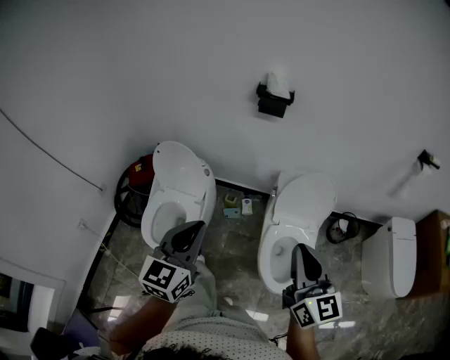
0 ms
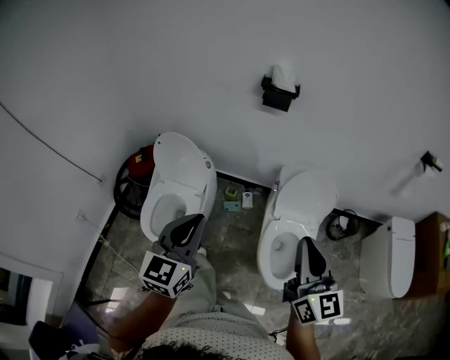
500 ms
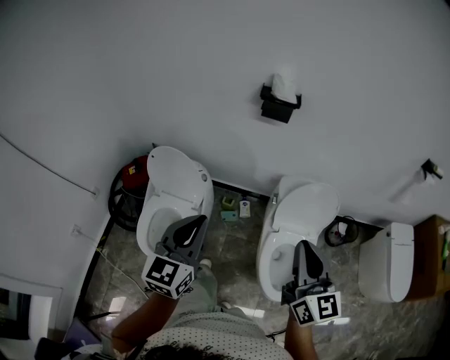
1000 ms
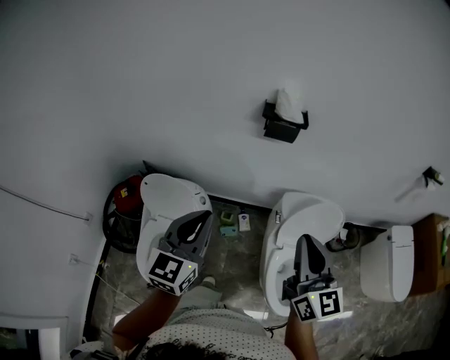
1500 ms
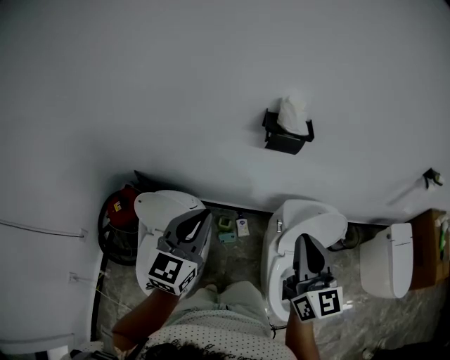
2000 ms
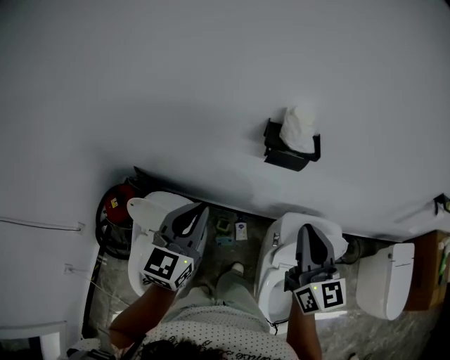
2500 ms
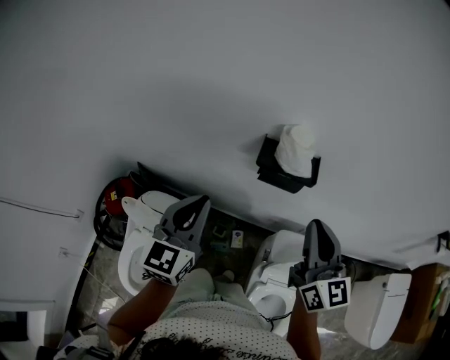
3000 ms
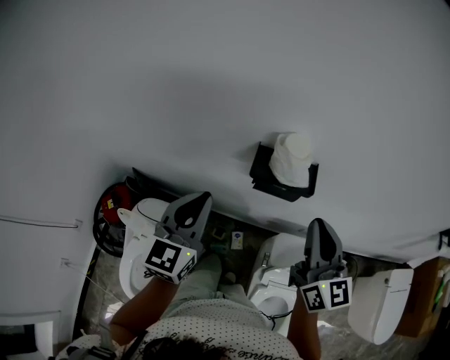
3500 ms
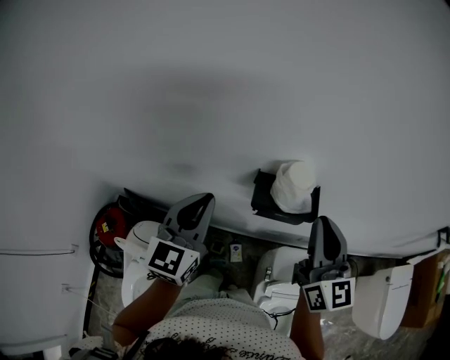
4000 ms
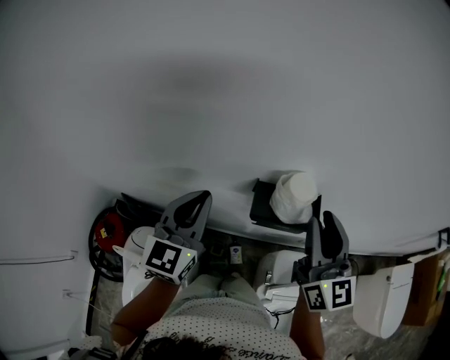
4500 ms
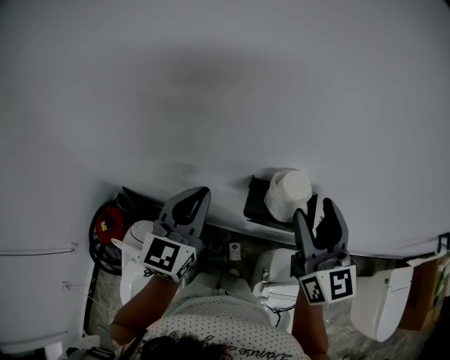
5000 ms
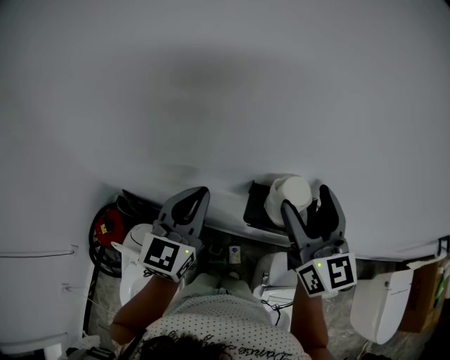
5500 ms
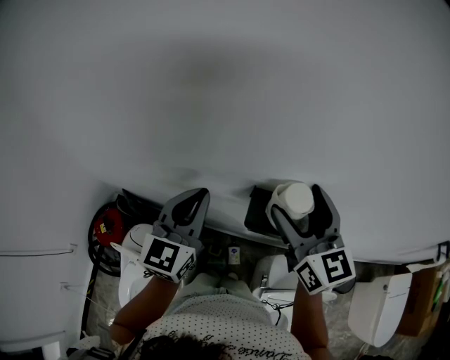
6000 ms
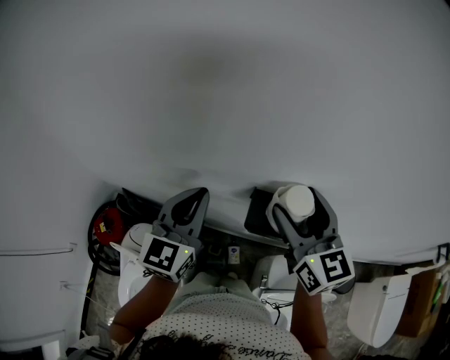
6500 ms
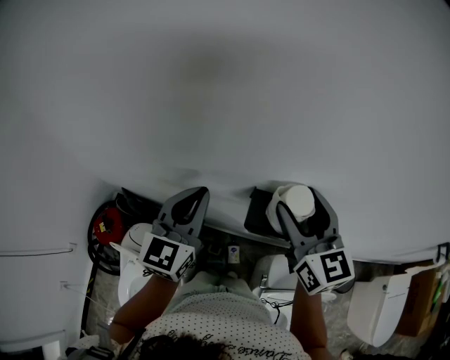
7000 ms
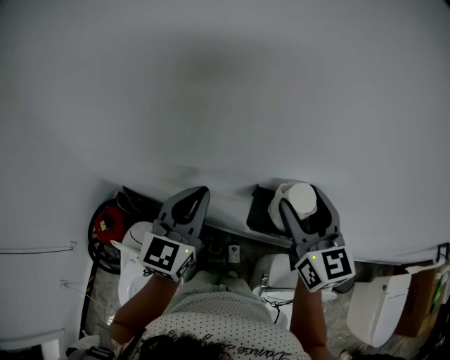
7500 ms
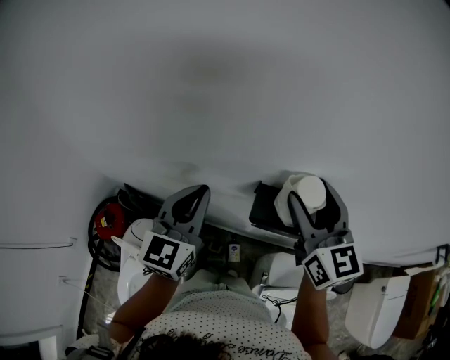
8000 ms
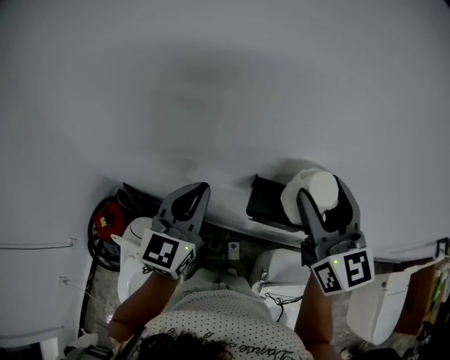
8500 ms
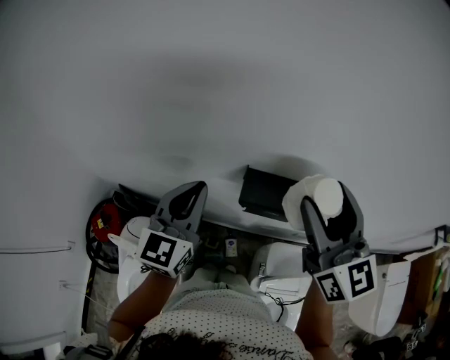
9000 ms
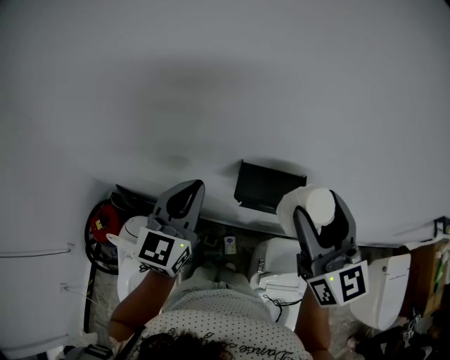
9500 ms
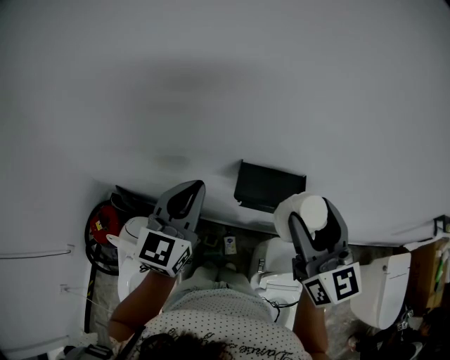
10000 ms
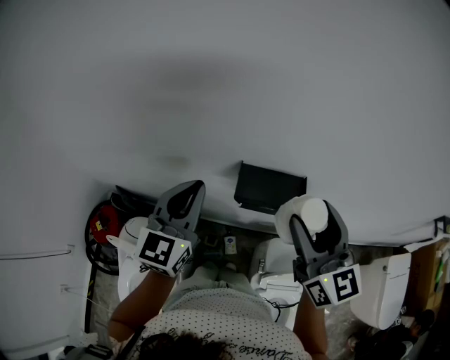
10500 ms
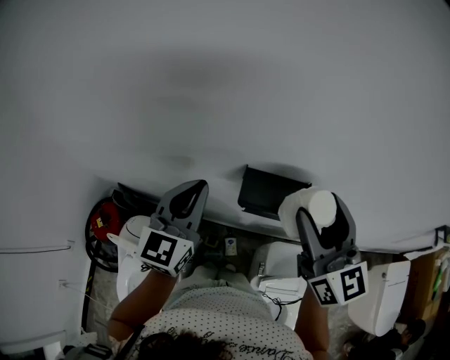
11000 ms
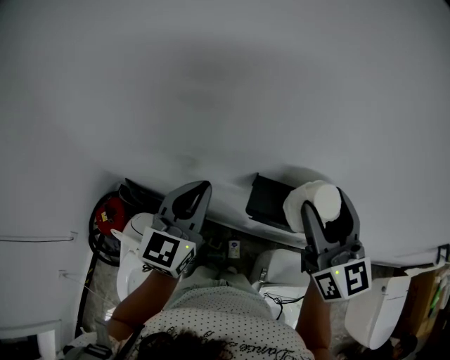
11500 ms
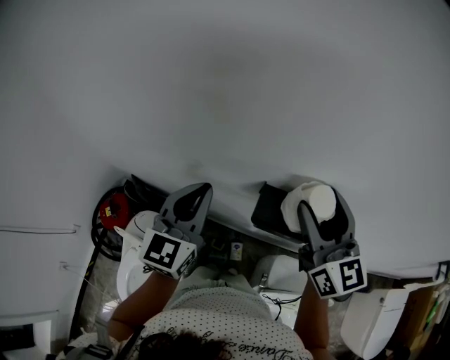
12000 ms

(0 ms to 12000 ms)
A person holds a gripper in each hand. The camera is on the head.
0 ms - 2000 ms: The two grippers go some 30 cm forward.
2000 ms - 4000 ms: The two grippers go approximately 30 cm forward.
4000 ms - 6000 ms: The right gripper travels forward and to the left by roughly 10 cm, and opens its fingers.
6000 ms - 8000 ms: The grippers make only small movements.
8000 ms - 10000 ms: The right gripper travels backward by about 10 cm.
10000 ms - 12000 ms: The right gripper moves forward, some 10 cm.

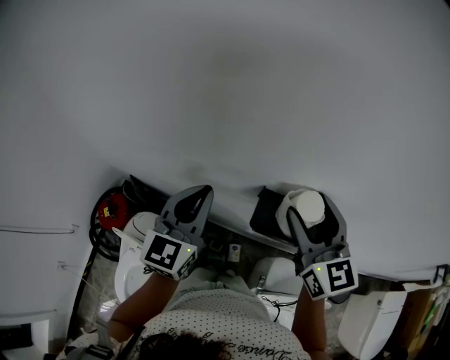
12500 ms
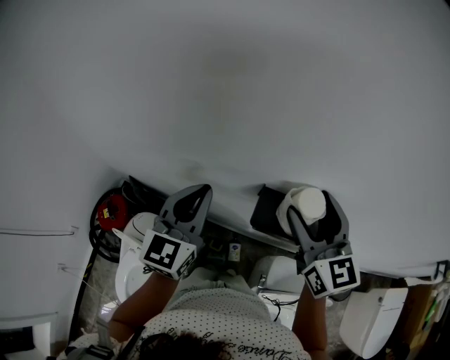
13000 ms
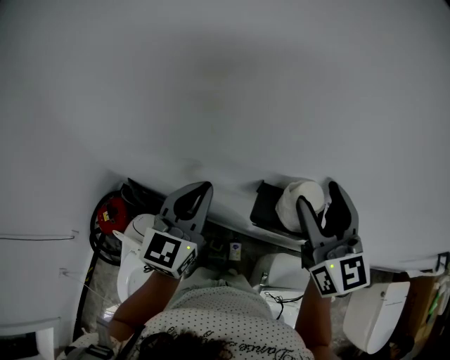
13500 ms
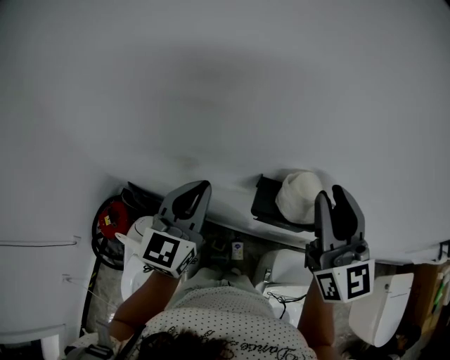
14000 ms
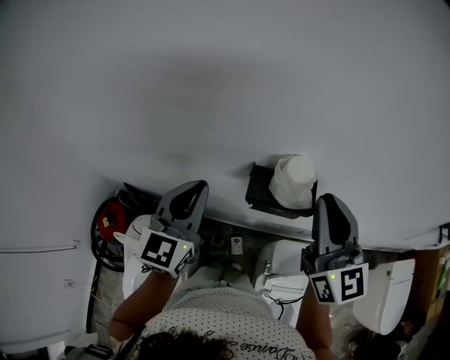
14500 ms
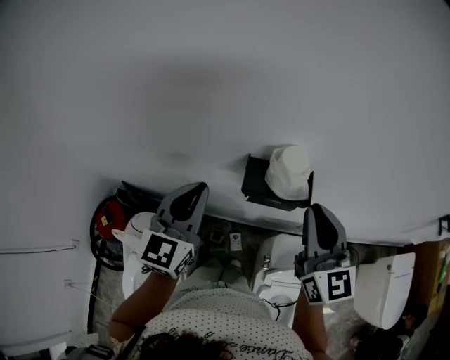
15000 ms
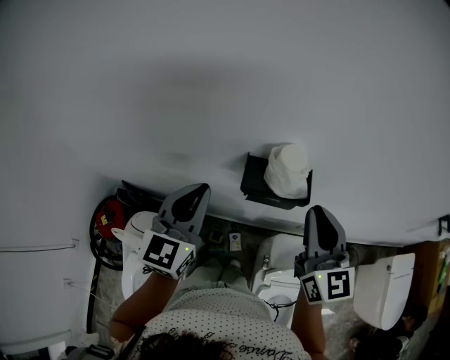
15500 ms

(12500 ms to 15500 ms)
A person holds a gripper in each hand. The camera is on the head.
12500 ms - 14000 ms: The right gripper moves upward, some 5 cm, and closes up.
14000 ms - 15500 ms: The right gripper is displaced downward and backward by about 10 cm; the left gripper ends up approximately 5 cm from where it was.

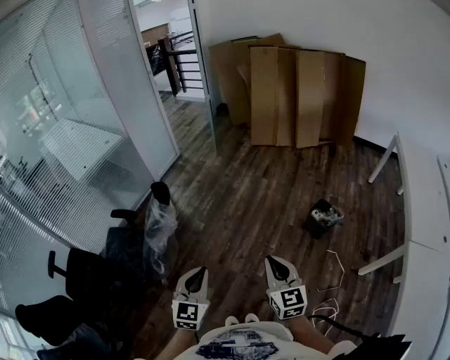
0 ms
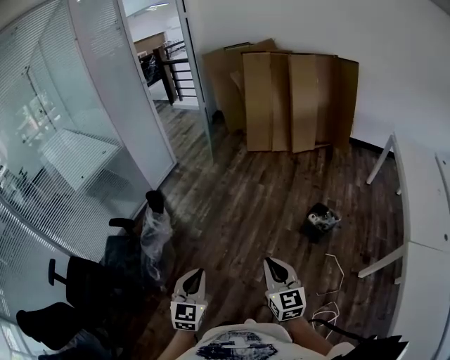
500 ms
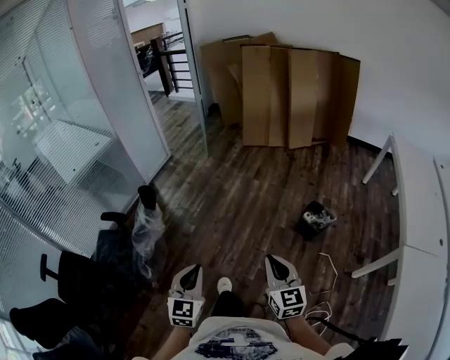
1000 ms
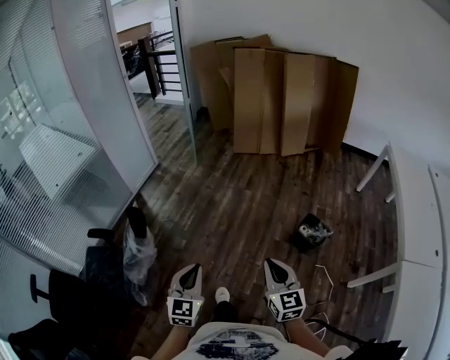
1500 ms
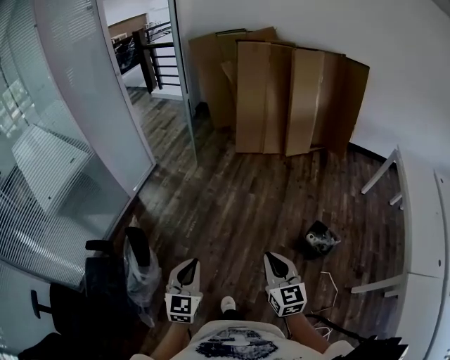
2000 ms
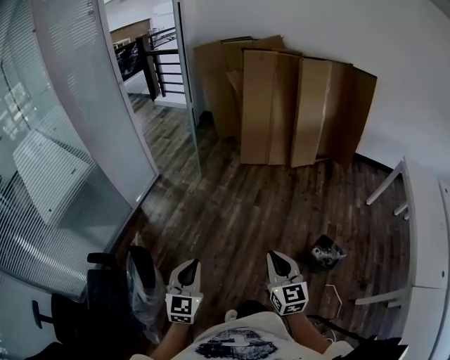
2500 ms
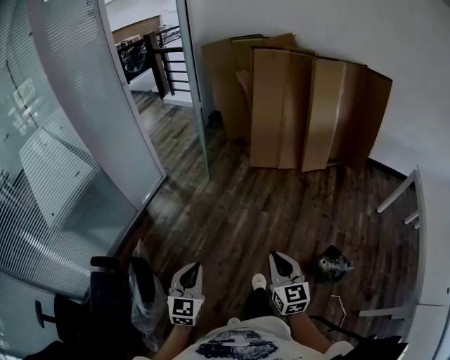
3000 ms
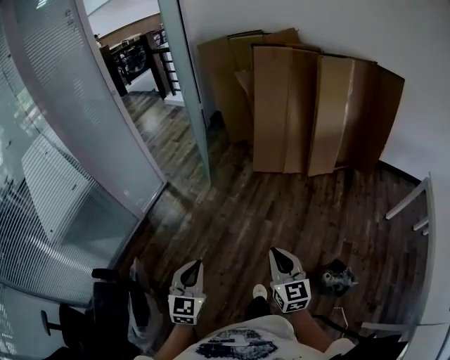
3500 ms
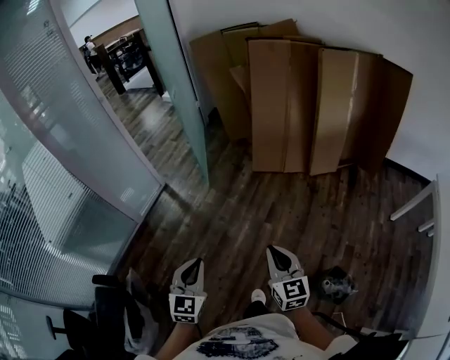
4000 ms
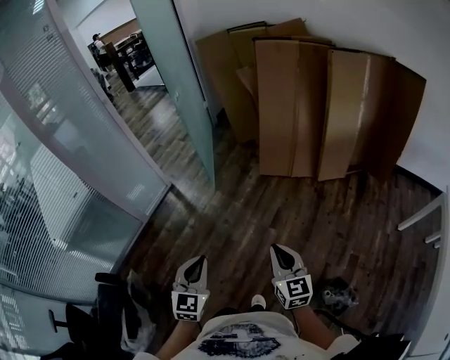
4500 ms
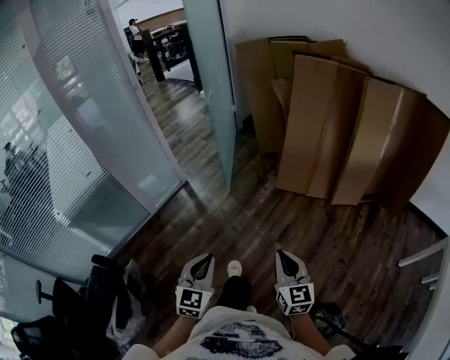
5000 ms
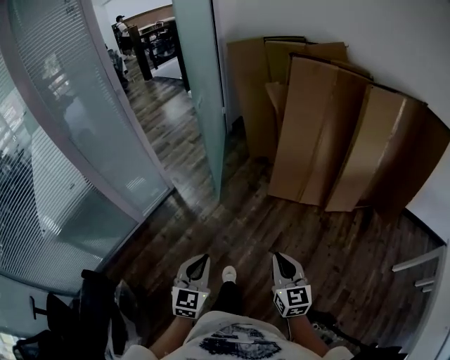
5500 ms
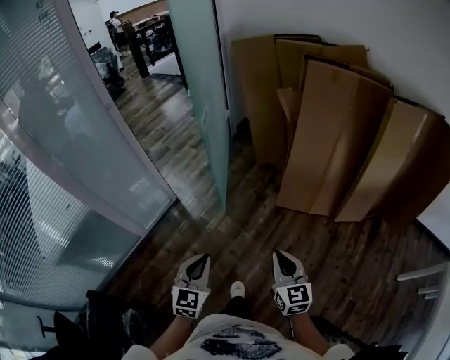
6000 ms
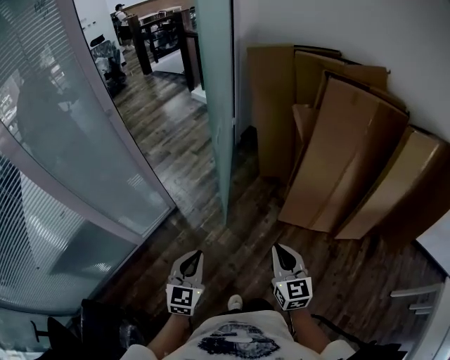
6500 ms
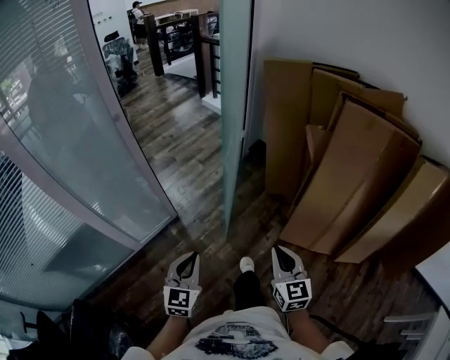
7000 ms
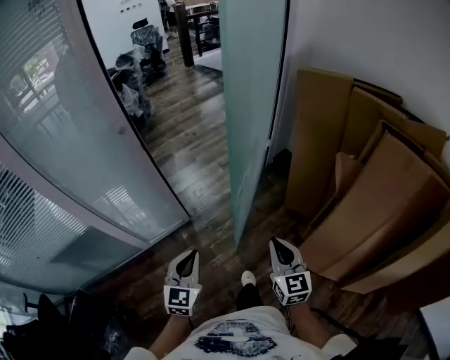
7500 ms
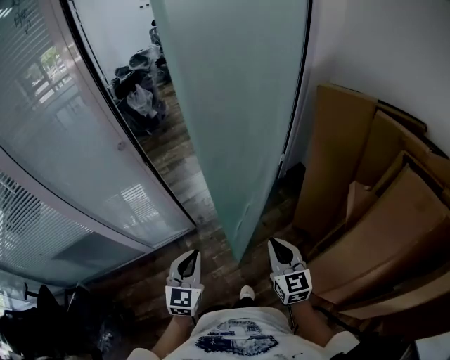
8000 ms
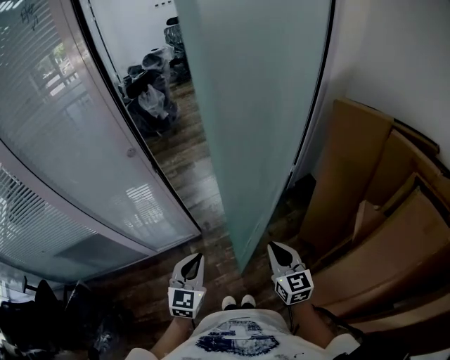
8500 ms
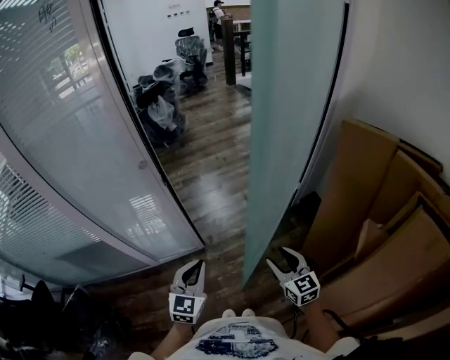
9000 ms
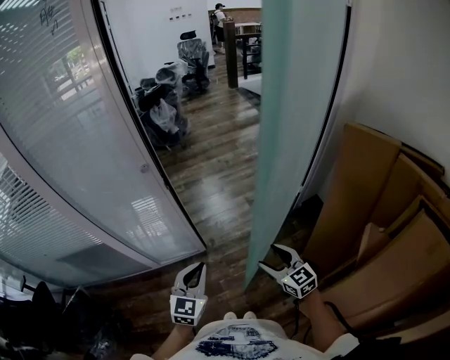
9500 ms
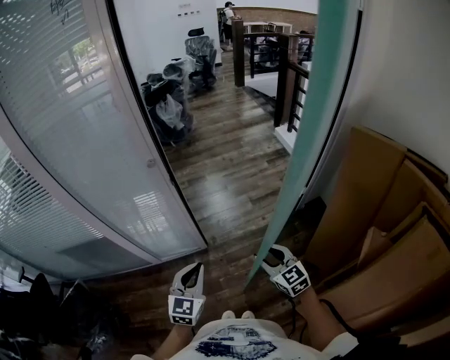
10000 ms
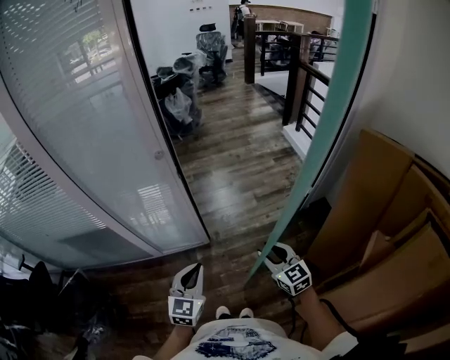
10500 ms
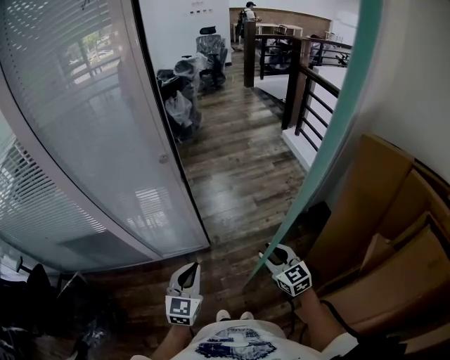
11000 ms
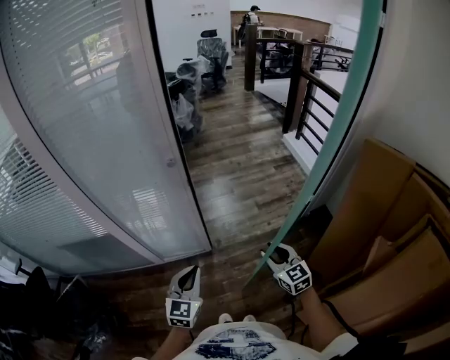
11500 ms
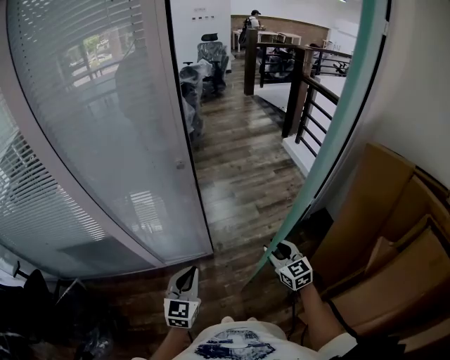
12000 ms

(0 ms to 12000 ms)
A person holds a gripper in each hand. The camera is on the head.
0 ms - 2000 ms: The two grippers go approximately 30 cm forward.
2000 ms - 4000 ms: Both grippers move forward, roughly 35 cm.
4000 ms - 6000 ms: The two grippers go some 35 cm forward.
6000 ms - 8000 ms: The pair of grippers is taken some 50 cm. The left gripper changes its angle by roughly 30 degrees, while the right gripper rotates roughly 30 degrees.
8000 ms - 10000 ms: The left gripper moves forward, roughly 5 cm; the right gripper moves forward, to the left and downward, approximately 15 cm, rotates some 30 degrees, and opens up.
10000 ms - 12000 ms: The right gripper heads forward, covering about 5 cm; the left gripper is displaced to the left by some 10 cm.
